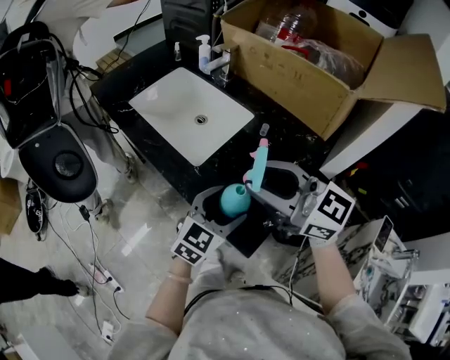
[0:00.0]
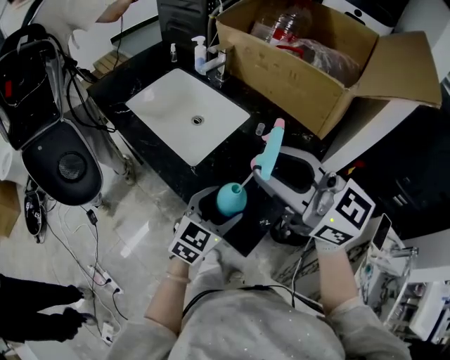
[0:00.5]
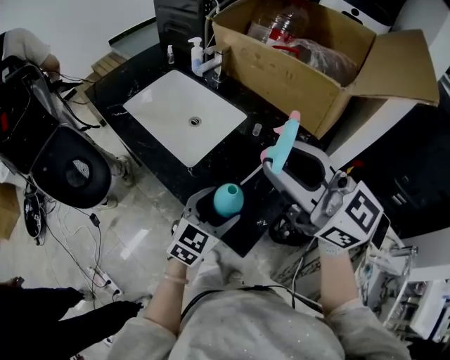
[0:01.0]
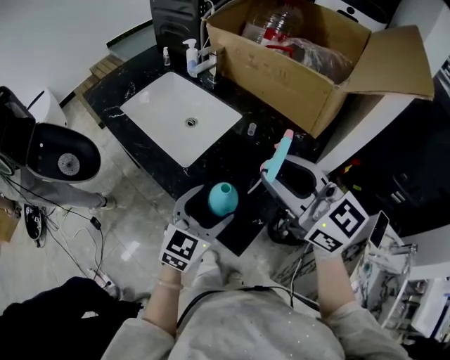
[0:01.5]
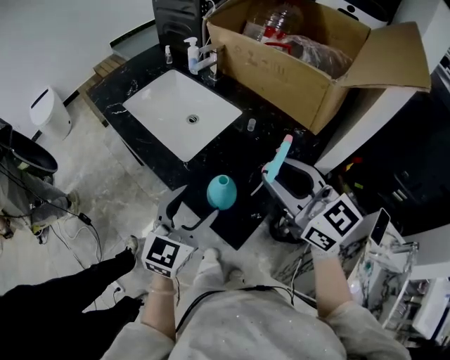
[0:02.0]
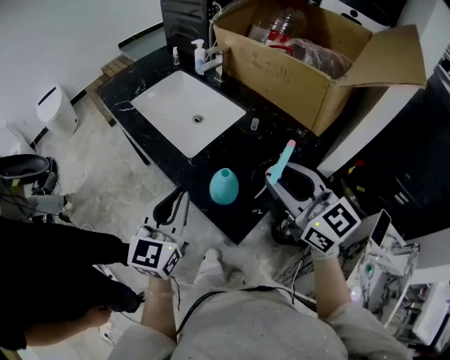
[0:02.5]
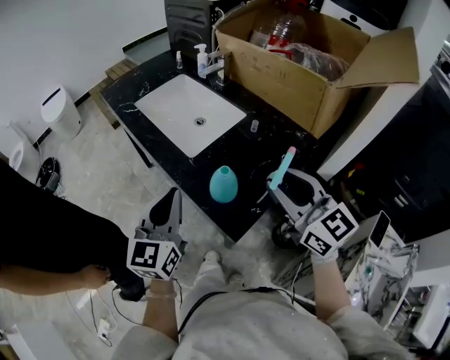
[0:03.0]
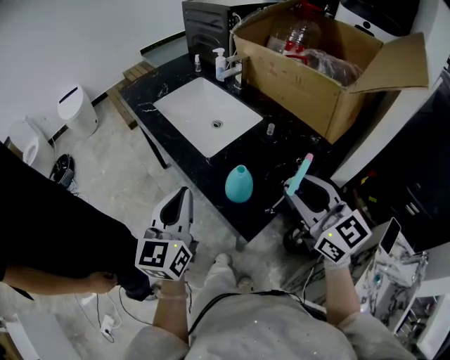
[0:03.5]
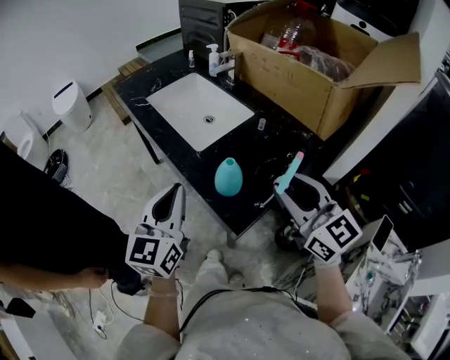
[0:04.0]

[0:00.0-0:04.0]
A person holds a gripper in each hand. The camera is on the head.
0:00.0 to 0:02.0: The left gripper travels upward and to the left by about 10 cm; the right gripper heads to the right, covering some 10 cm, and travels upward and back again, some 10 cm each way.
0:02.0 to 0:04.0: The right gripper moves backward, approximately 5 cm. The left gripper shifts some 10 cm to the left and upward, rotates some 30 degrees, and closes up.

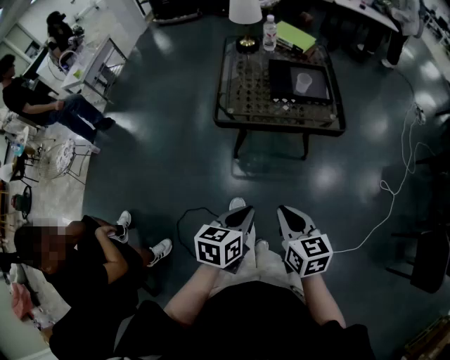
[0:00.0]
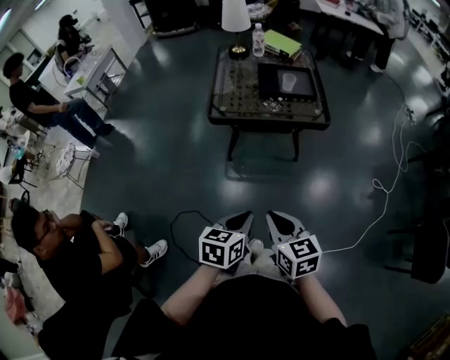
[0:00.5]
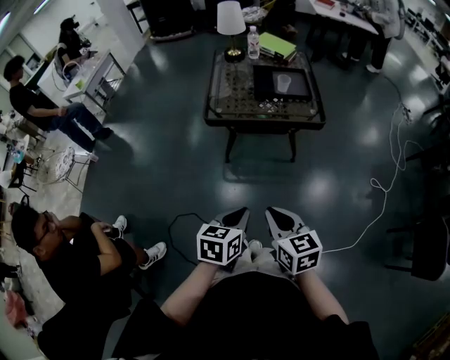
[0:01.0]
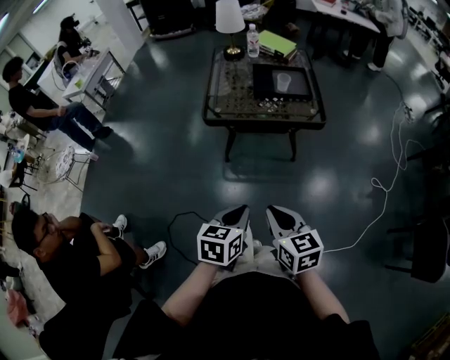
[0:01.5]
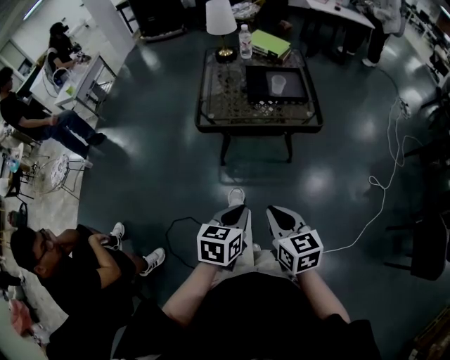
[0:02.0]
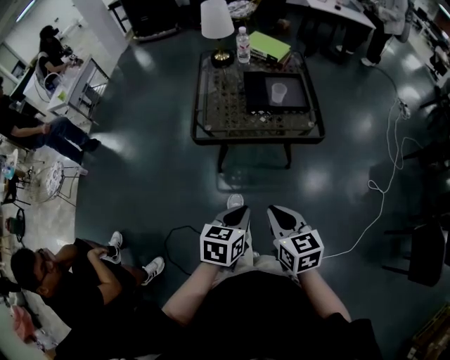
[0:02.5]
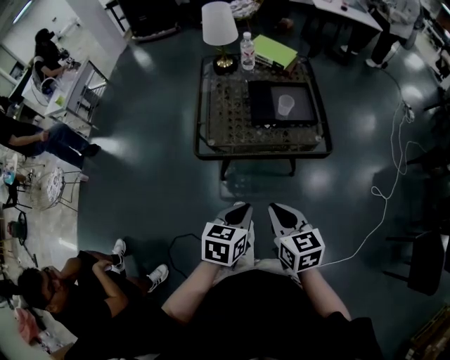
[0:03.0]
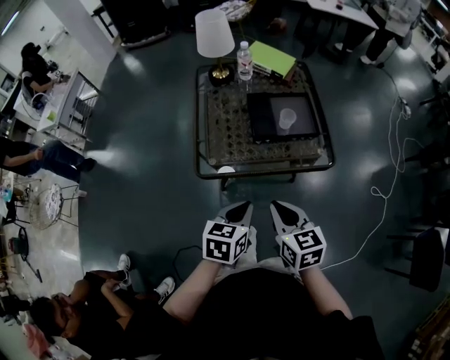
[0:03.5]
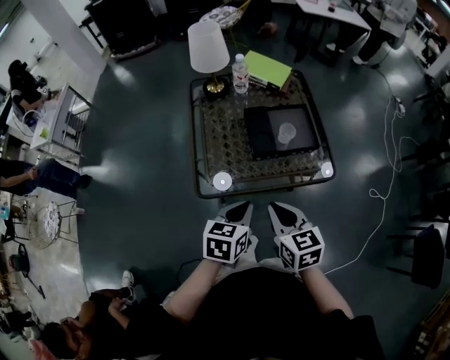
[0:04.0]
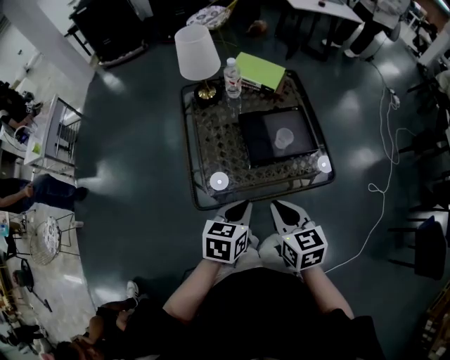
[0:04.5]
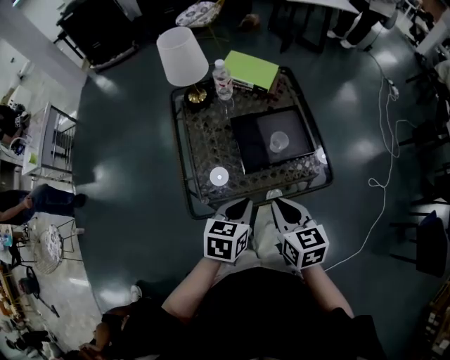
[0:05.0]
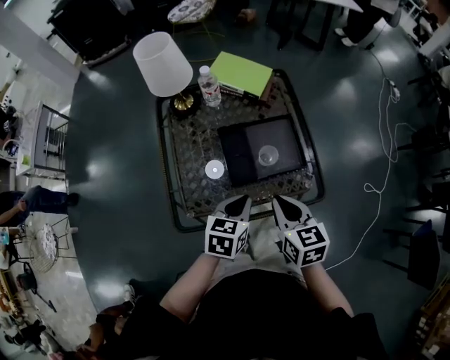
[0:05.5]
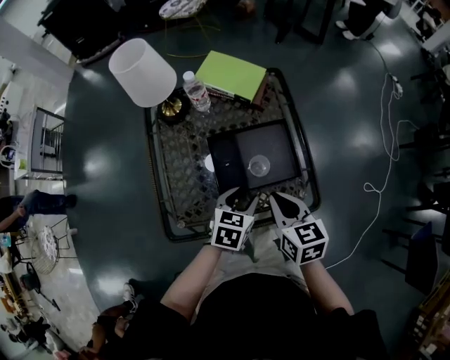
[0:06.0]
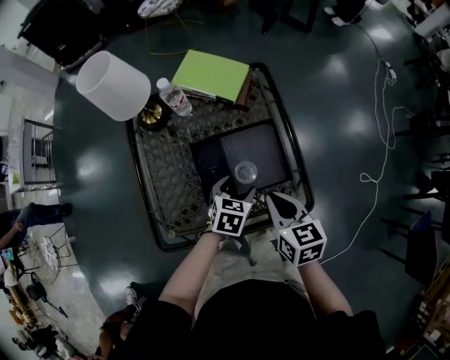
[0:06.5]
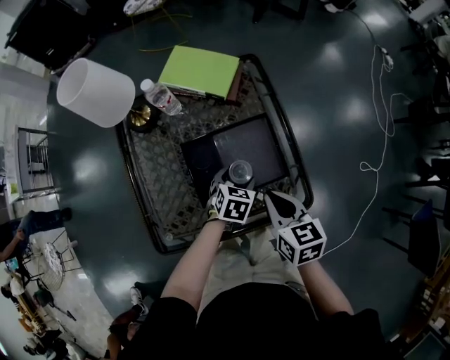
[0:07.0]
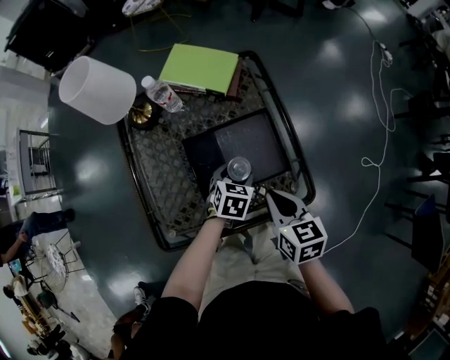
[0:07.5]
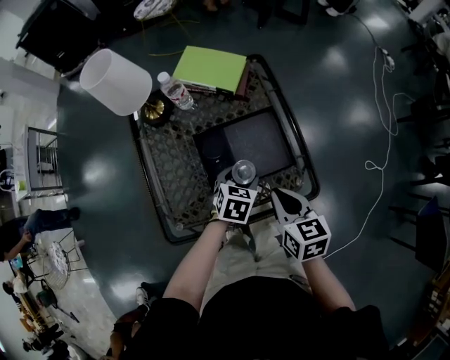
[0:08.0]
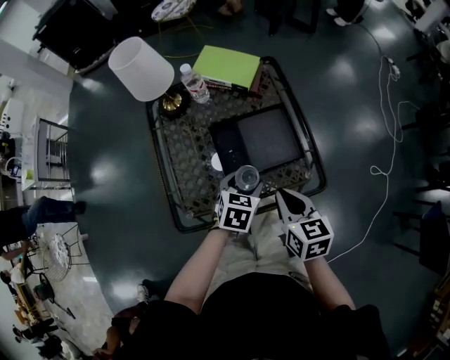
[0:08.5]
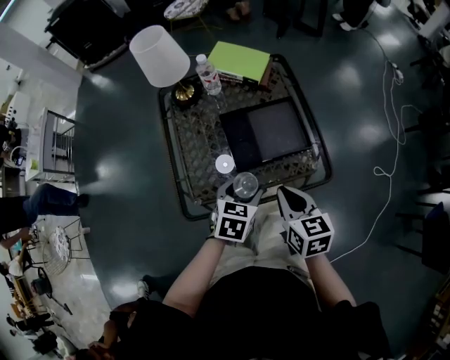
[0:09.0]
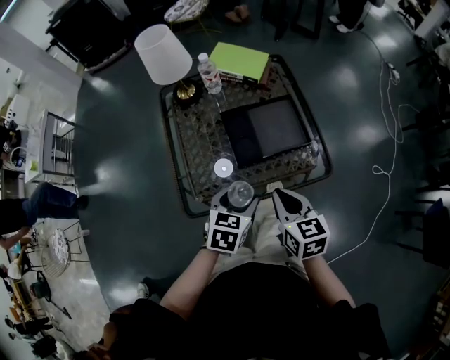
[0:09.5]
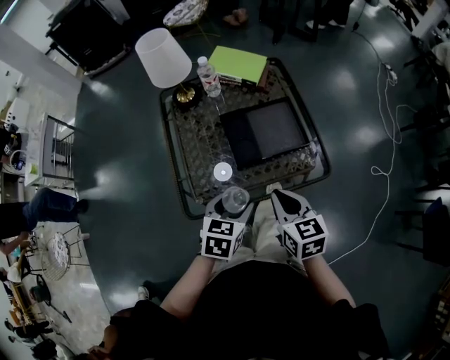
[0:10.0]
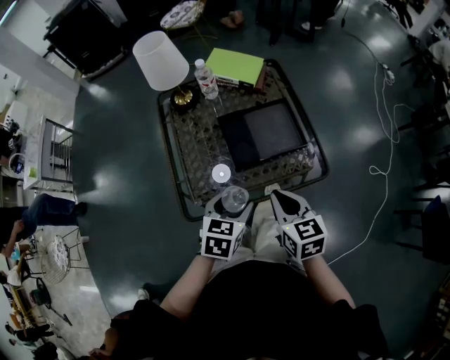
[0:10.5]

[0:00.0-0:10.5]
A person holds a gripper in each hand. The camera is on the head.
0:00.0 to 0:02.0: The left gripper moves approximately 10 cm backward and comes back.
0:02.0 to 0:04.0: Both grippers travel together forward, roughly 30 cm.
0:04.0 to 0:06.5: The left gripper heads forward, downward and to the right, covering some 35 cm, turns by about 20 degrees, and opens, while the right gripper shifts about 30 cm forward and to the right.
0:06.5 to 0:08.5: The left gripper heads backward and upward, covering about 10 cm. The right gripper is displaced backward by approximately 10 cm.
0:08.5 to 0:10.5: The left gripper is displaced backward, to the left and upward by roughly 15 cm, while the right gripper shifts roughly 5 cm backward.

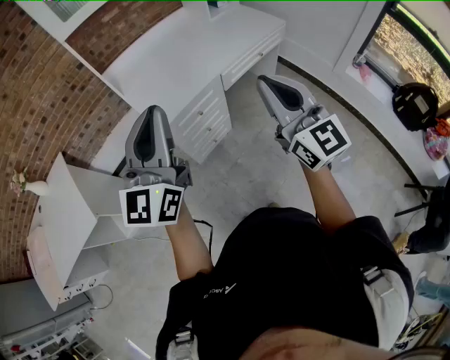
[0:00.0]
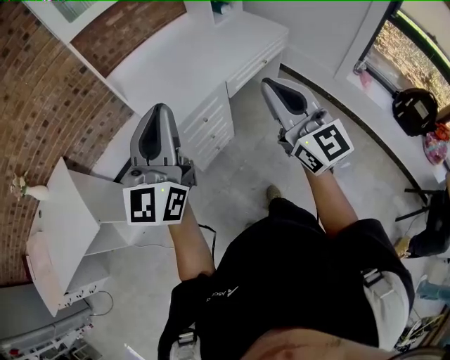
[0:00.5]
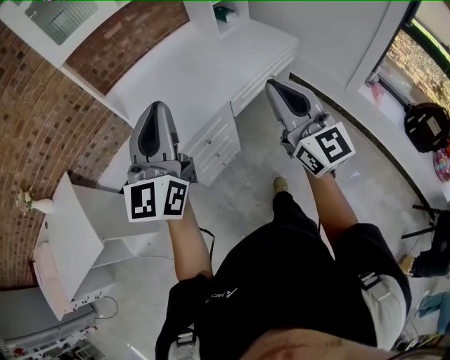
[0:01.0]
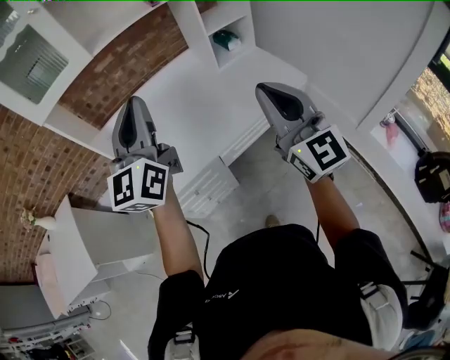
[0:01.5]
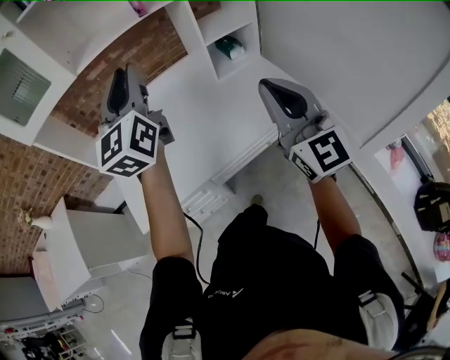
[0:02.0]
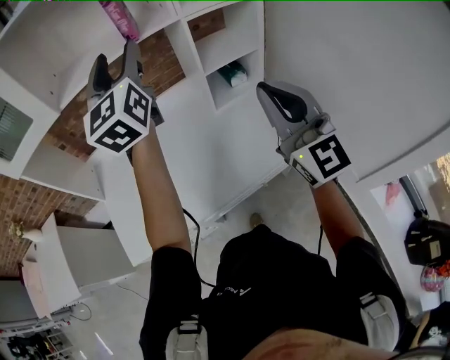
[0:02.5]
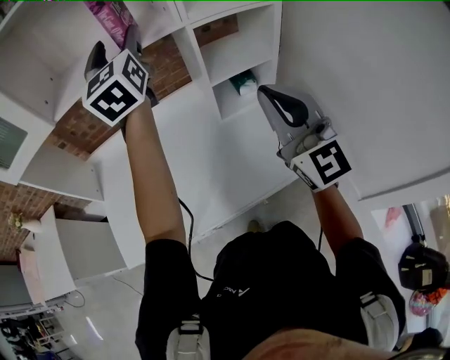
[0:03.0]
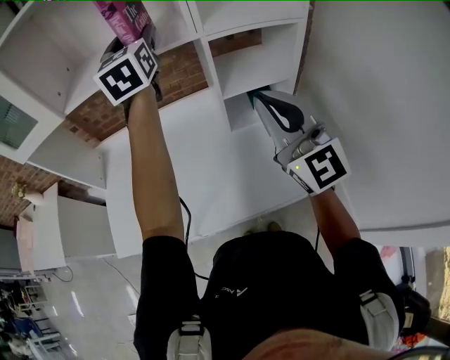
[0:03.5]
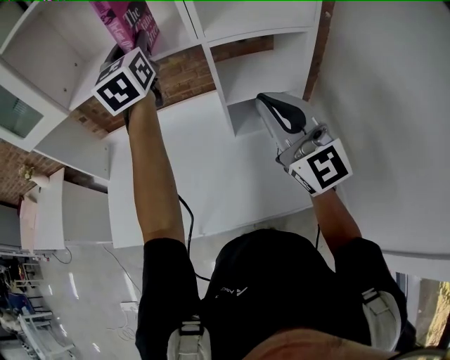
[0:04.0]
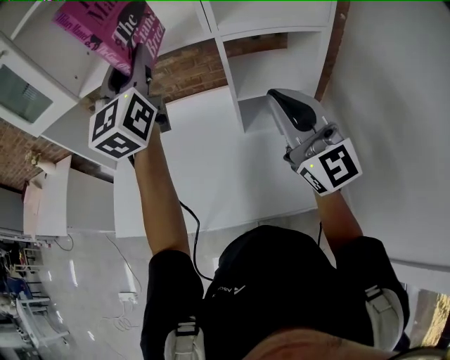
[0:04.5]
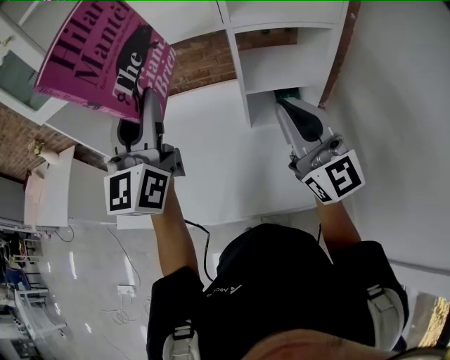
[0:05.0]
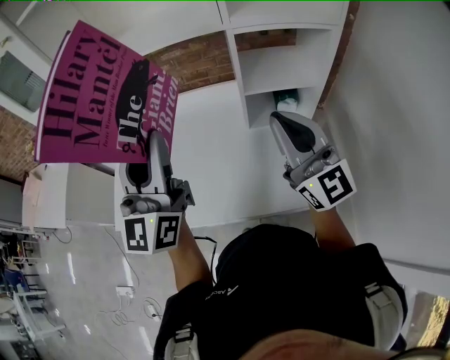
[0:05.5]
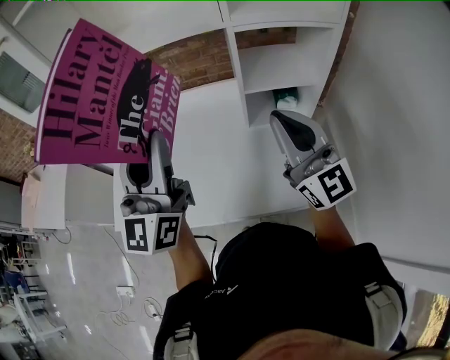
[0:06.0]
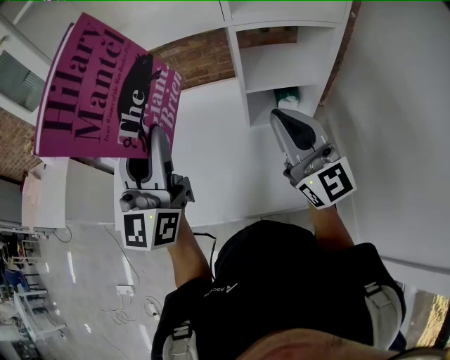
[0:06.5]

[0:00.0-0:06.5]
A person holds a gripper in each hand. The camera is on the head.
0:00.0 to 0:02.0: The two grippers travel together, forward and to the right, approximately 60 cm. The left gripper turns by about 30 degrees.
0:02.0 to 0:04.5: The right gripper changes place by some 40 cm, and swivels some 30 degrees; the left gripper moves some 30 cm, changes its angle by roughly 20 degrees, and opens, then closes again.
0:04.5 to 0:06.5: The left gripper heads backward and downward, covering about 15 cm. Meanwhile the right gripper shifts about 5 cm downward.

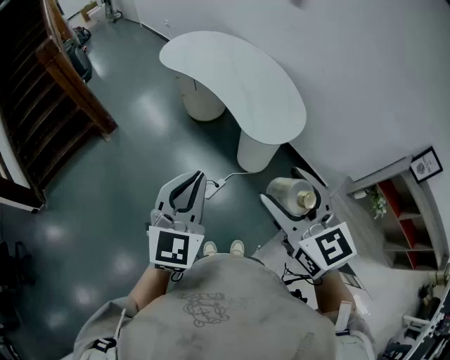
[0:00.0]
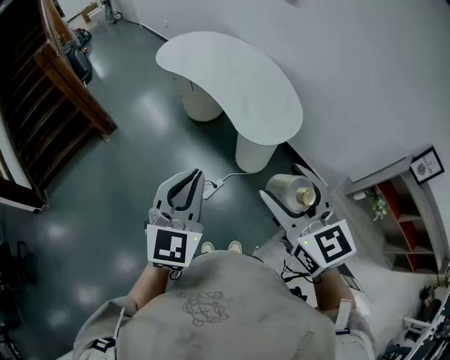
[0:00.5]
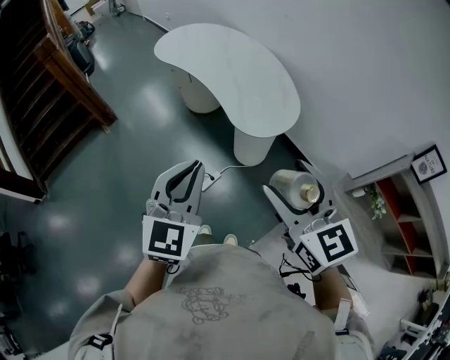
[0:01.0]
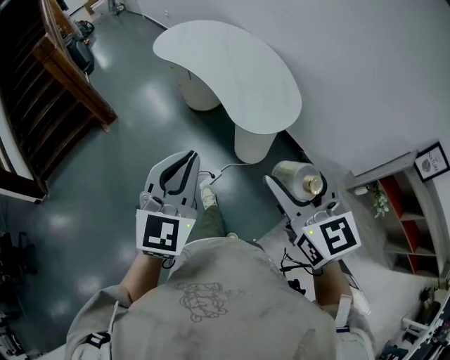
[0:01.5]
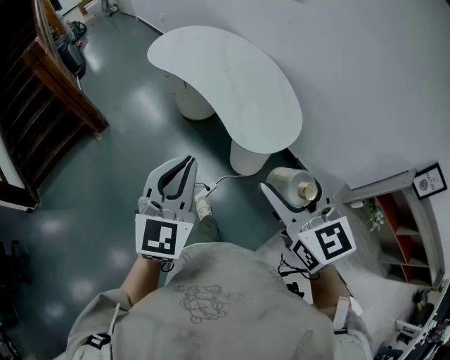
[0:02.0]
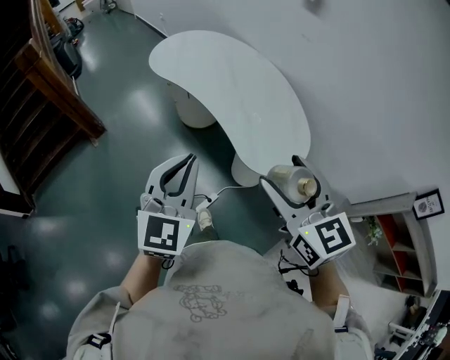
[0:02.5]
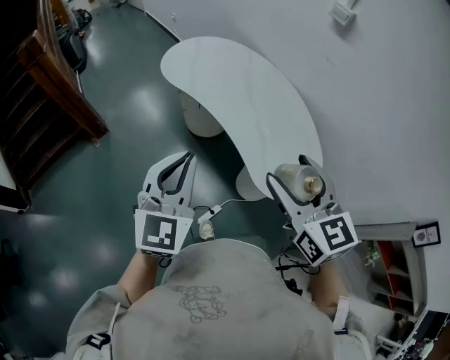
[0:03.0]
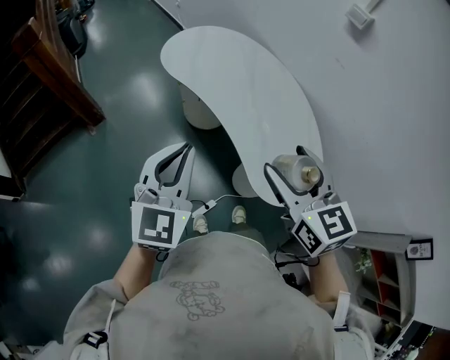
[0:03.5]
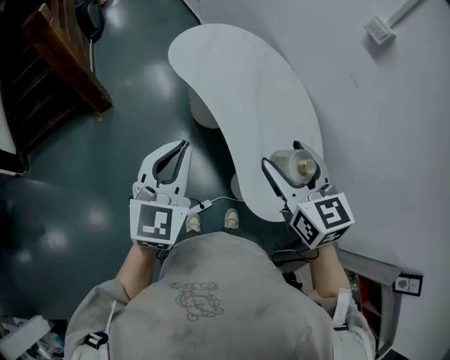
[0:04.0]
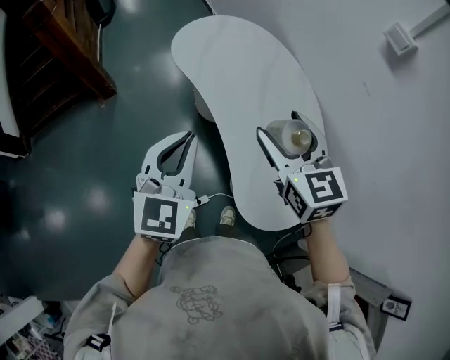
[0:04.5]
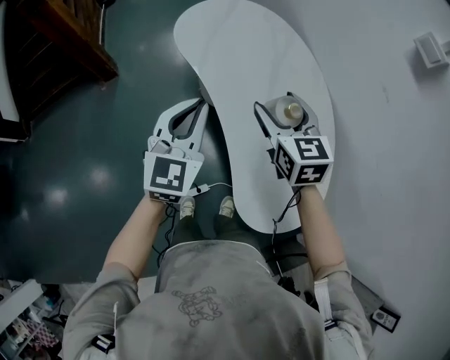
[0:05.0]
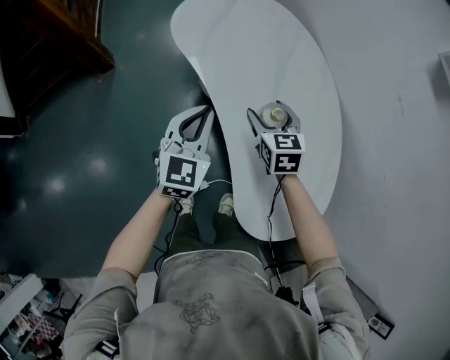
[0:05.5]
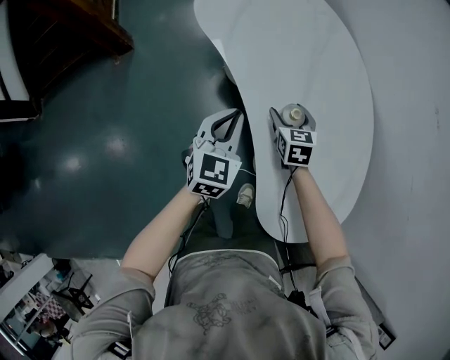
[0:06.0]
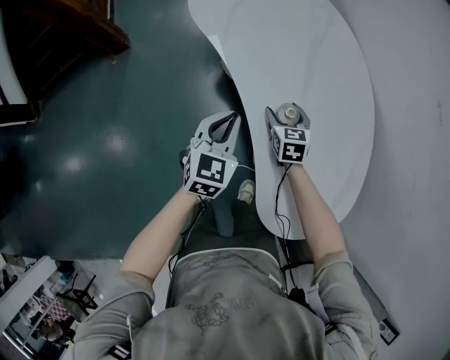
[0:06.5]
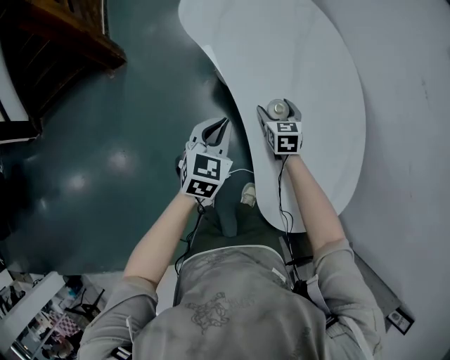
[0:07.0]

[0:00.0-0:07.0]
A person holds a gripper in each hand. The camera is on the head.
0:00.0 to 0:02.0: The grippers both shift forward and to the right by roughly 10 cm.
0:02.0 to 0:03.5: The left gripper moves forward and to the left, approximately 30 cm. Meanwhile the right gripper moves forward, roughly 30 cm.
0:03.5 to 0:05.0: The left gripper moves forward, to the right and downward, about 25 cm; the right gripper goes some 30 cm forward and downward.
0:05.0 to 0:07.0: The right gripper travels downward by approximately 30 cm. The left gripper shifts some 20 cm downward, and rotates roughly 20 degrees.
